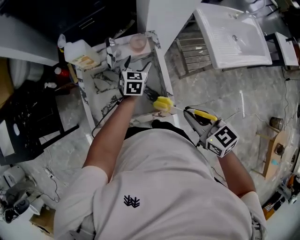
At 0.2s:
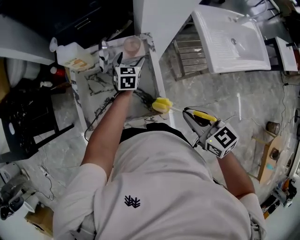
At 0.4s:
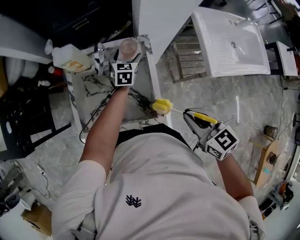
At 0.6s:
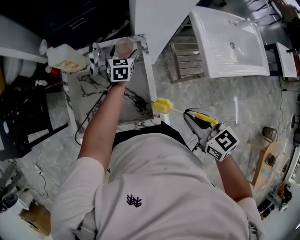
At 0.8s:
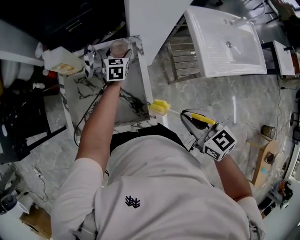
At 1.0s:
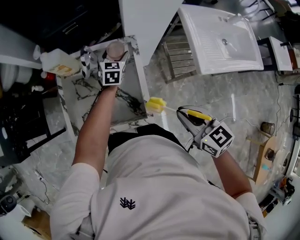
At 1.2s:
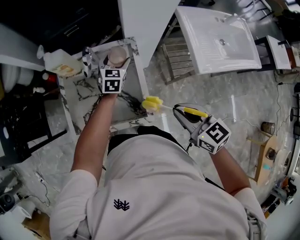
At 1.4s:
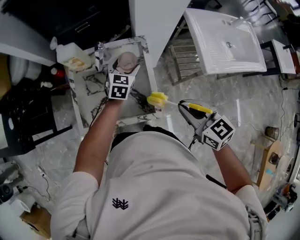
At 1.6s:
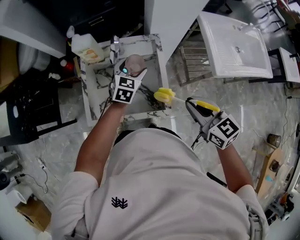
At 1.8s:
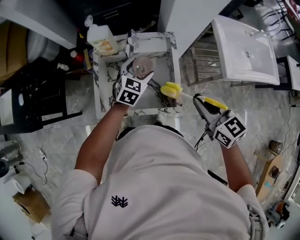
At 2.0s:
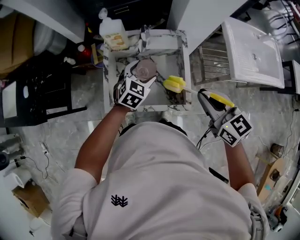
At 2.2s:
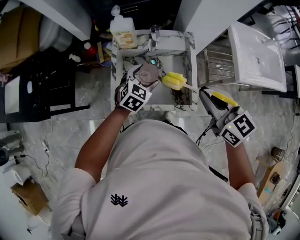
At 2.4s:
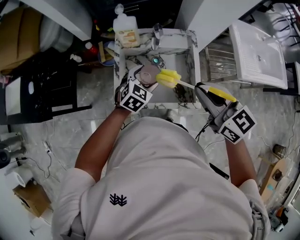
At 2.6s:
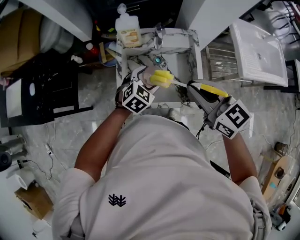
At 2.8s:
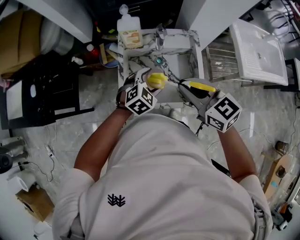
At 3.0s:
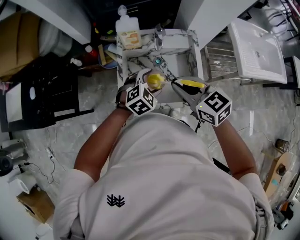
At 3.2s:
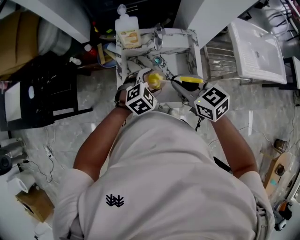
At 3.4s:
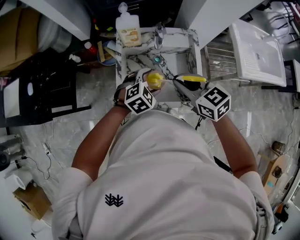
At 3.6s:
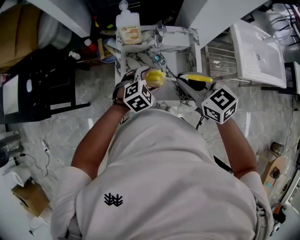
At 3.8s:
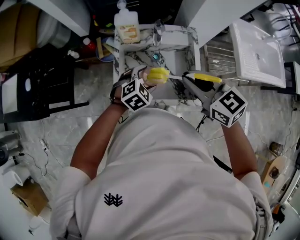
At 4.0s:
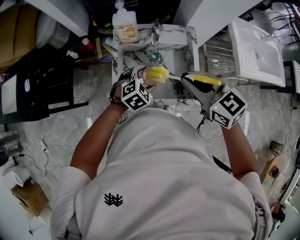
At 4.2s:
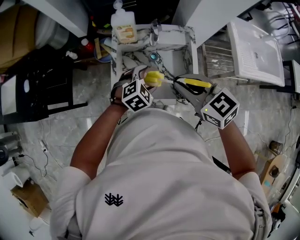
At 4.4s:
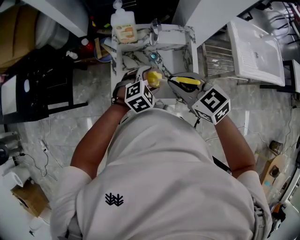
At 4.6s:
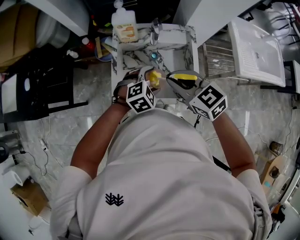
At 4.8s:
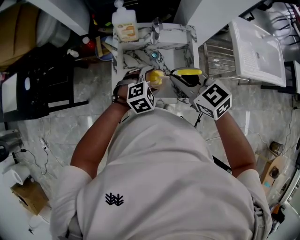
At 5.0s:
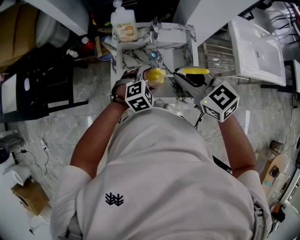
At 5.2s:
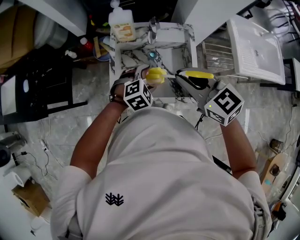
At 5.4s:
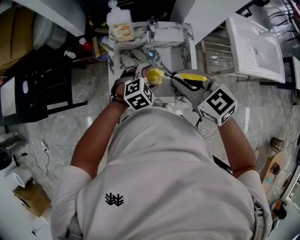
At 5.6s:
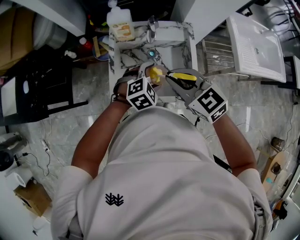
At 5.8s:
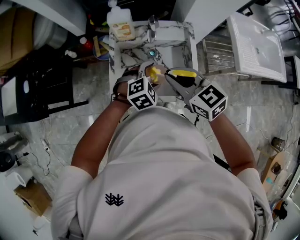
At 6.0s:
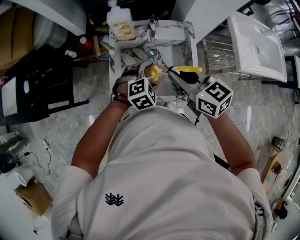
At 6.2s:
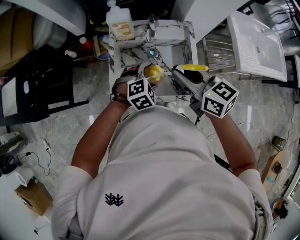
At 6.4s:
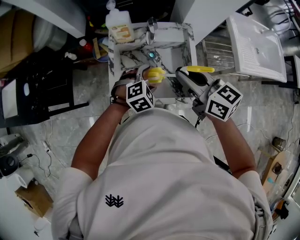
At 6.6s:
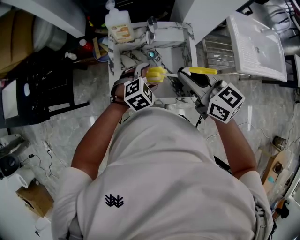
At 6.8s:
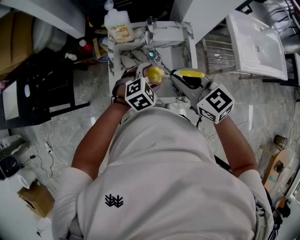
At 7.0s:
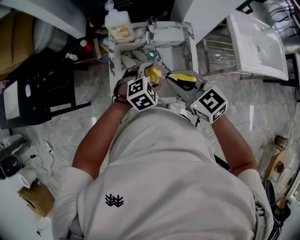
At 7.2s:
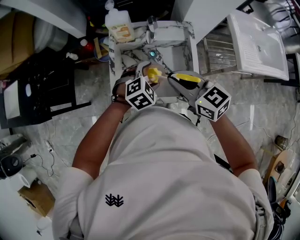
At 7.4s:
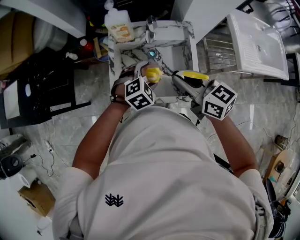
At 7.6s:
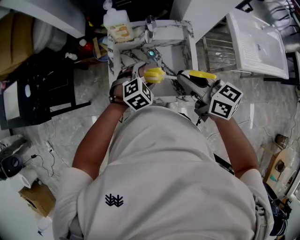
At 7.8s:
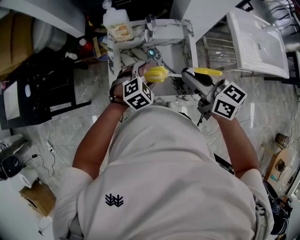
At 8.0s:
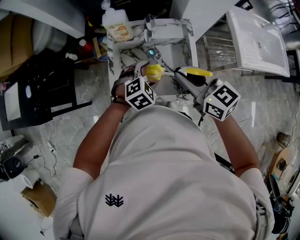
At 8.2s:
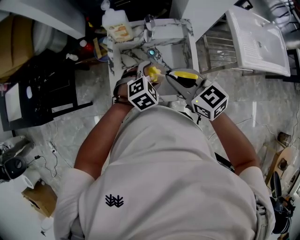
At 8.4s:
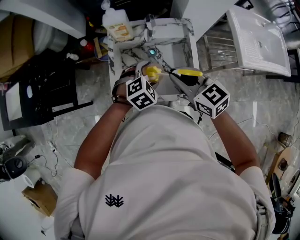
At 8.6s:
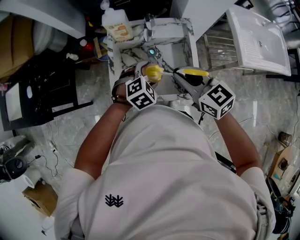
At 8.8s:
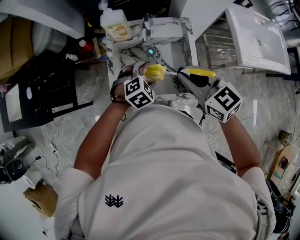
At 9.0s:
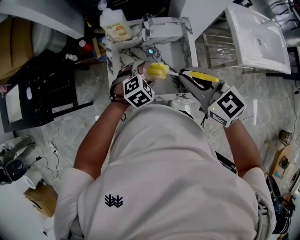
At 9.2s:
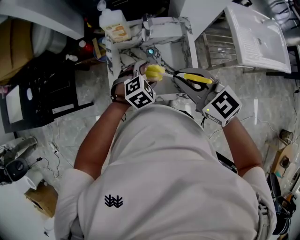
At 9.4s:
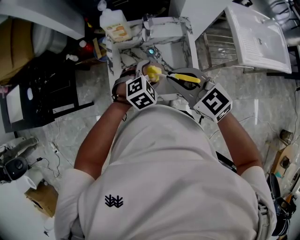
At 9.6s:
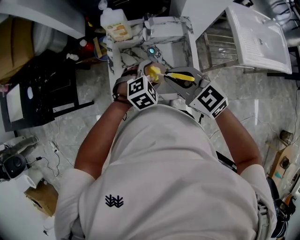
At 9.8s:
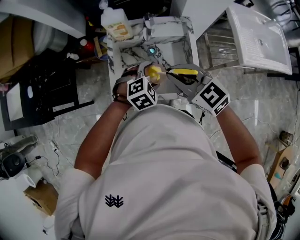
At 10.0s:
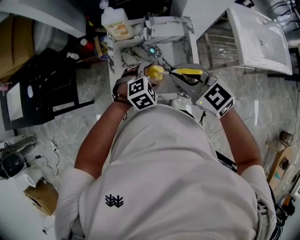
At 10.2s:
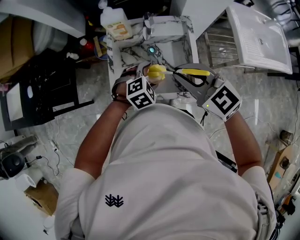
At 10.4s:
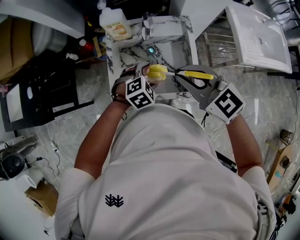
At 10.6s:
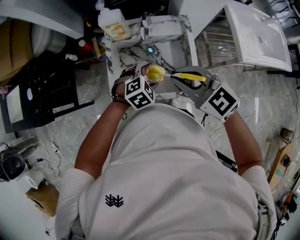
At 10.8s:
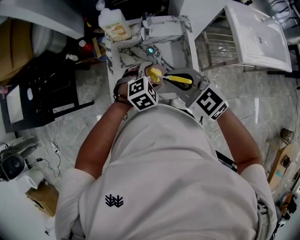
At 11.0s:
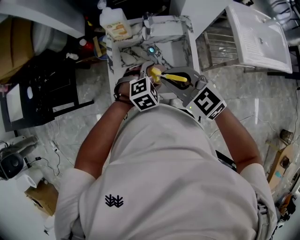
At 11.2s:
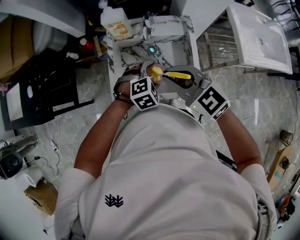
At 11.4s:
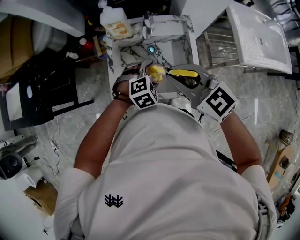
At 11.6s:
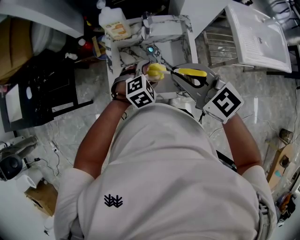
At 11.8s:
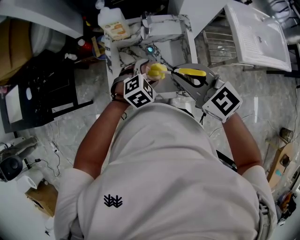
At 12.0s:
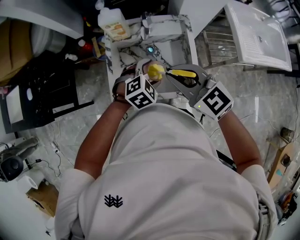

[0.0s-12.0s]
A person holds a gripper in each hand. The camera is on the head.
0.0s to 1.6s: The left gripper shifts some 5 cm upward, and moves approximately 10 cm forward and comes back.
1.6s to 3.0s: The left gripper heads to the left and backward, covering some 15 cm, and turns by approximately 30 degrees. Meanwhile the right gripper goes approximately 25 cm to the left.
3.0s to 6.0s: There are only small adjustments of the grippers.
6.0s to 7.6s: The grippers move only a little.
7.6s to 9.0s: The right gripper swivels about 30 degrees.
10.4s to 12.0s: The grippers move only a little.

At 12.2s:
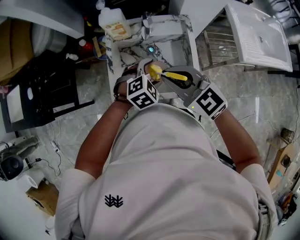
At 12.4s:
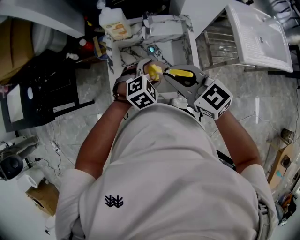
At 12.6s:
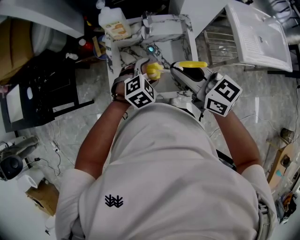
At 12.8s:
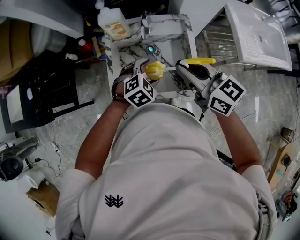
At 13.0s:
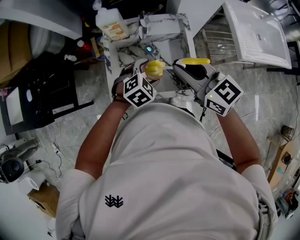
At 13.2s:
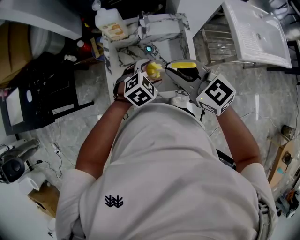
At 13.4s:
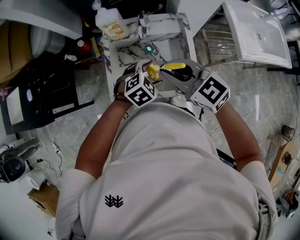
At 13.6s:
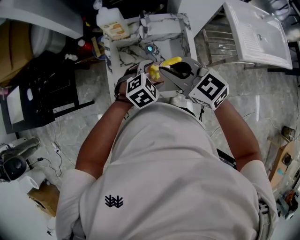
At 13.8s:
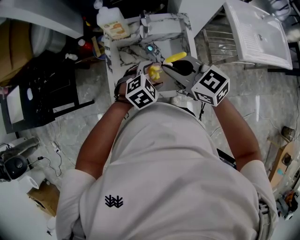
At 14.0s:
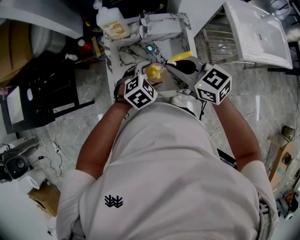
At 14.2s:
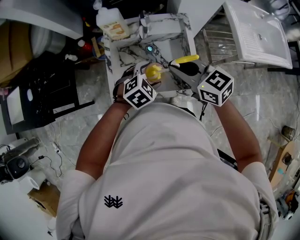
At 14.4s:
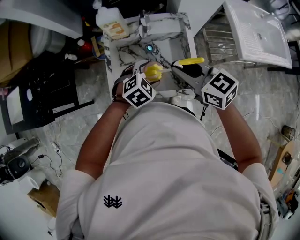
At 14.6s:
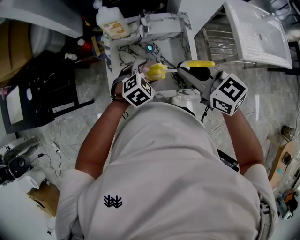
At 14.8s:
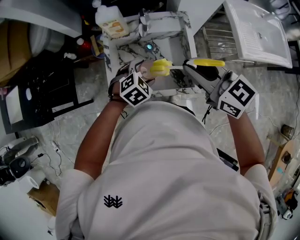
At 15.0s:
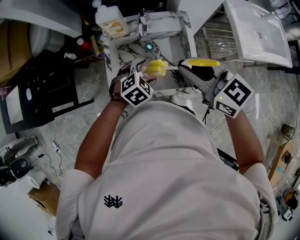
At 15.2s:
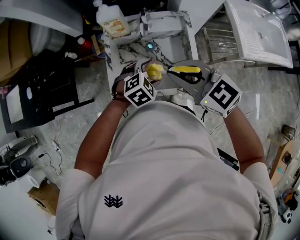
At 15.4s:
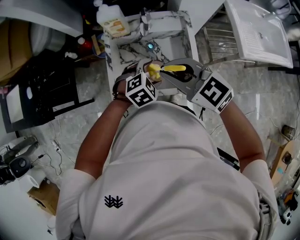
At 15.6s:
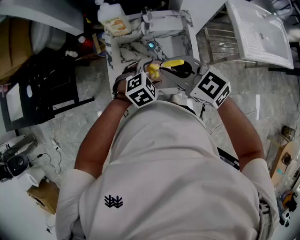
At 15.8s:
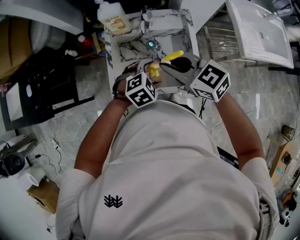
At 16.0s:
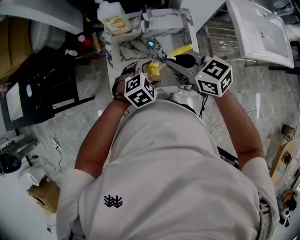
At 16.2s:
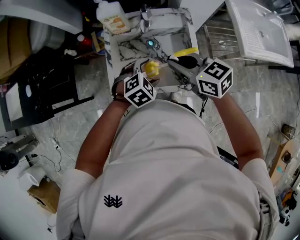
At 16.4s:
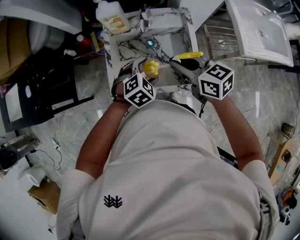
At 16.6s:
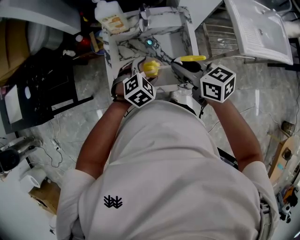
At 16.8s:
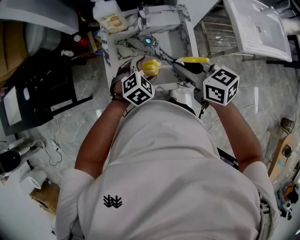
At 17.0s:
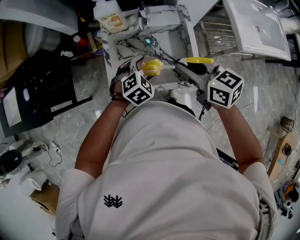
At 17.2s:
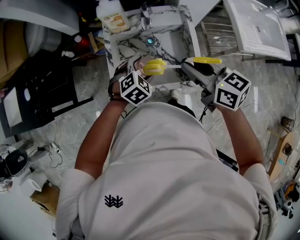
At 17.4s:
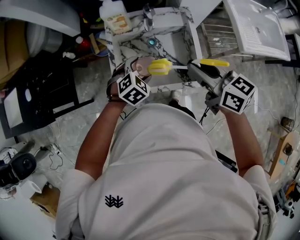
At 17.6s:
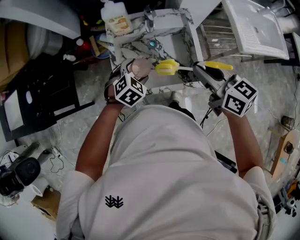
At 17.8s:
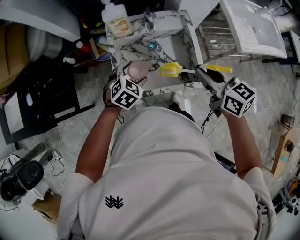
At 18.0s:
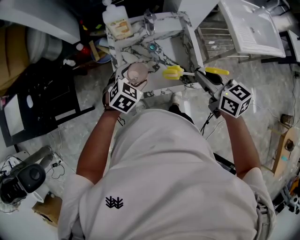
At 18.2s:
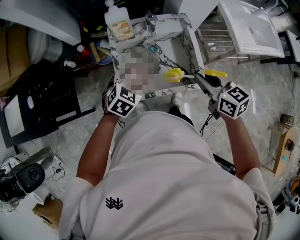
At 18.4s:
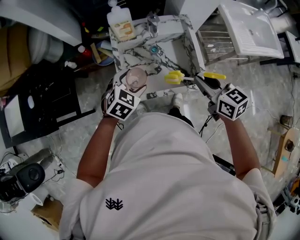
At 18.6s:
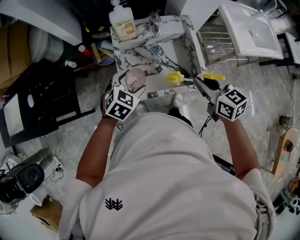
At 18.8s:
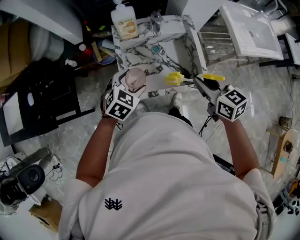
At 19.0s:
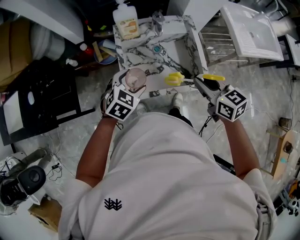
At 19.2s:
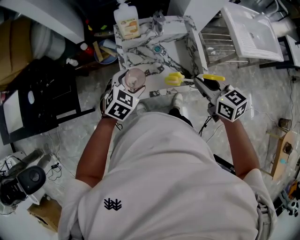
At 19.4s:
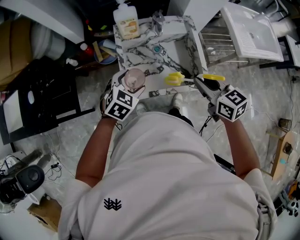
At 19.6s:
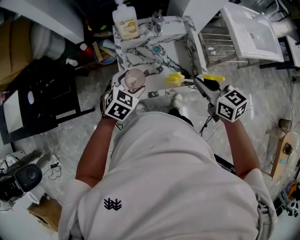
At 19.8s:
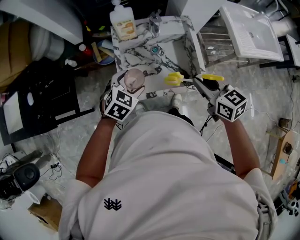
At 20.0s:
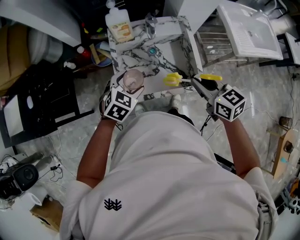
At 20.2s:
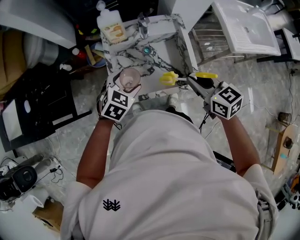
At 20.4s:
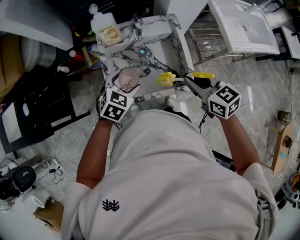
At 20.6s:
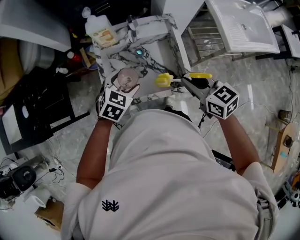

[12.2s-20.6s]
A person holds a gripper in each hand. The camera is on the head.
13.6s to 15.0s: The right gripper heads to the right, covering approximately 5 cm.
15.0s to 16.4s: The right gripper shifts approximately 10 cm downward.
16.4s to 17.8s: The left gripper moves to the left, approximately 10 cm, while the right gripper shifts by roughly 5 cm.
17.8s to 19.2s: The left gripper travels to the left by roughly 5 cm; the right gripper changes place by approximately 5 cm.
19.2s to 20.6s: The two grippers go about 5 cm to the right.

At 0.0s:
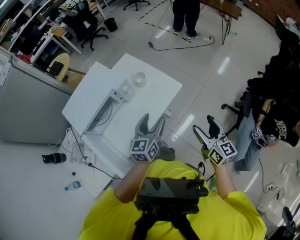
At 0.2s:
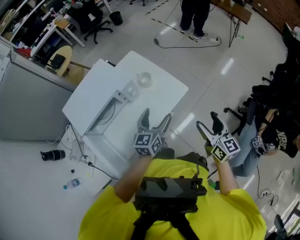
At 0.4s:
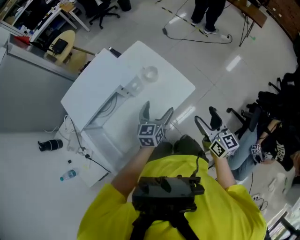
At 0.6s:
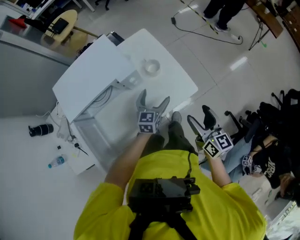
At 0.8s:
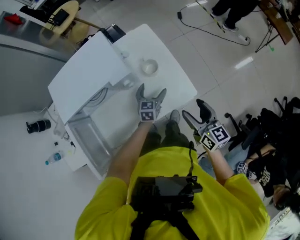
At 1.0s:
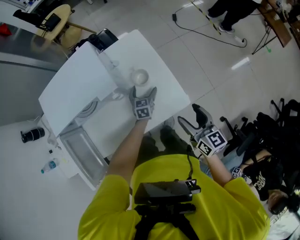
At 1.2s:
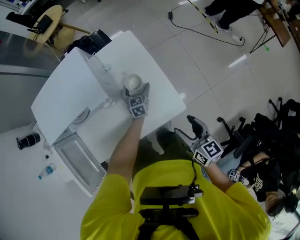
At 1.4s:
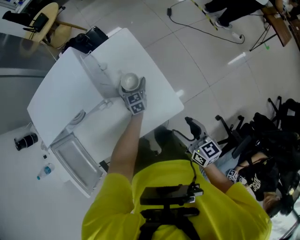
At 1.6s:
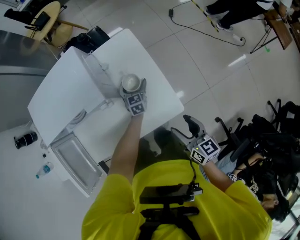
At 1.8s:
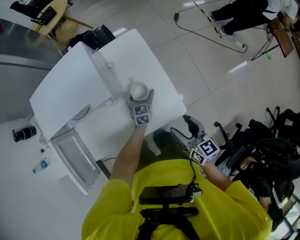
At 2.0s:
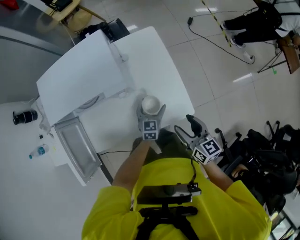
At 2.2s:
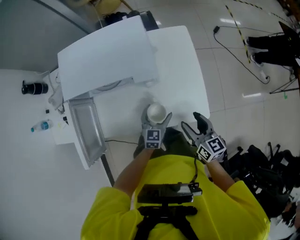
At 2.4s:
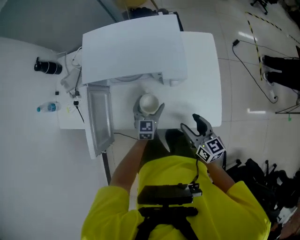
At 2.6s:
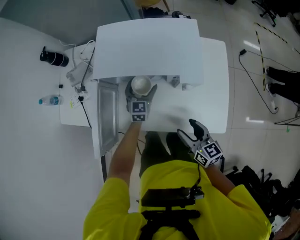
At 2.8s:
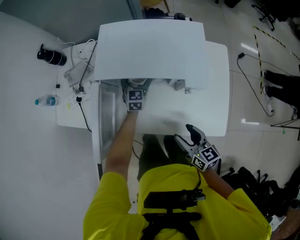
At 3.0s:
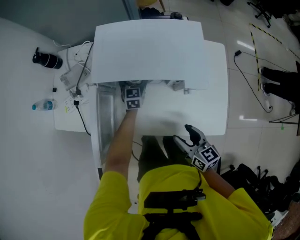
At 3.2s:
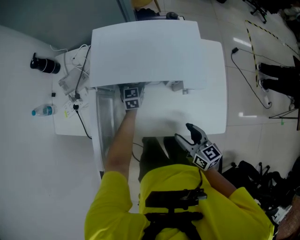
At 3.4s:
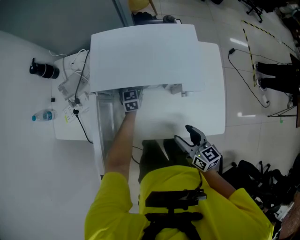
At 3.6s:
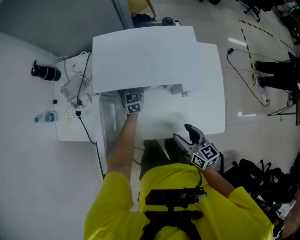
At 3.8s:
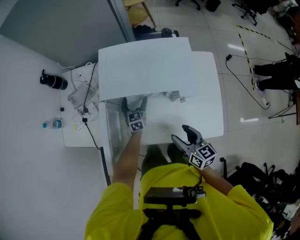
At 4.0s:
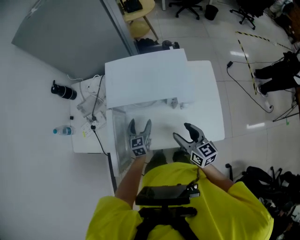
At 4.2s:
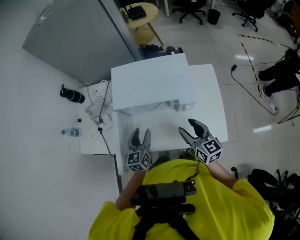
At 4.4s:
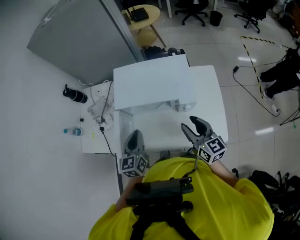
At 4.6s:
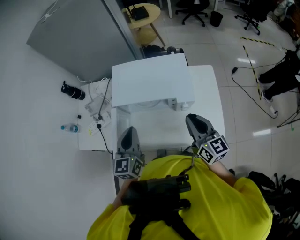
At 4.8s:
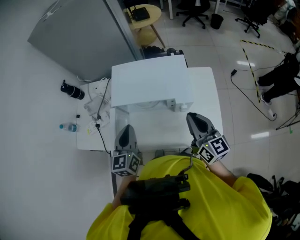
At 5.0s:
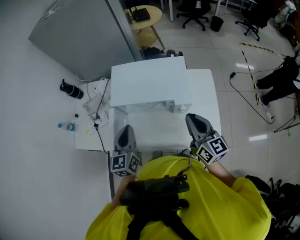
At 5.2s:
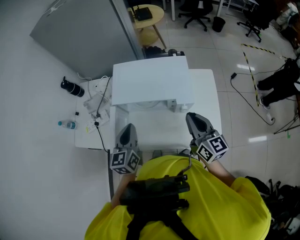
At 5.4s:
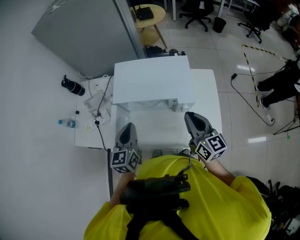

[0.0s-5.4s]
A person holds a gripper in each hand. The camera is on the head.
0.0s to 1.4s: The left gripper shifts by roughly 50 cm, changes its angle by about 40 degrees, and opens. Meanwhile the right gripper ends up some 30 cm from where it was, and rotates about 30 degrees.
1.4s to 2.8s: The right gripper shifts by about 25 cm, and swivels roughly 40 degrees. Meanwhile the left gripper ends up about 40 cm from where it was.
2.8s to 4.0s: The right gripper heads upward and forward, covering some 10 cm. Meanwhile the left gripper travels backward and to the left by some 15 cm.
4.0s to 5.4s: The right gripper travels upward by roughly 10 cm, and closes, while the left gripper moves upward, about 20 cm, and closes.
